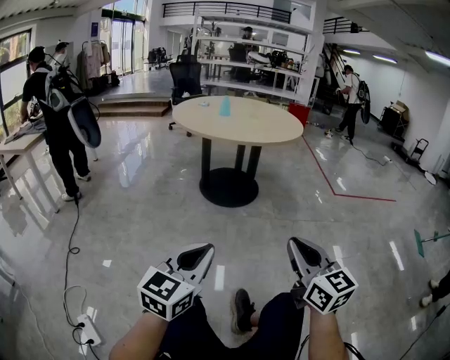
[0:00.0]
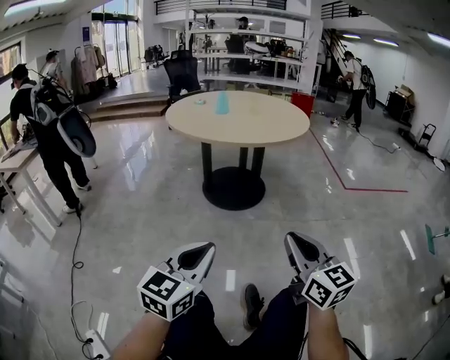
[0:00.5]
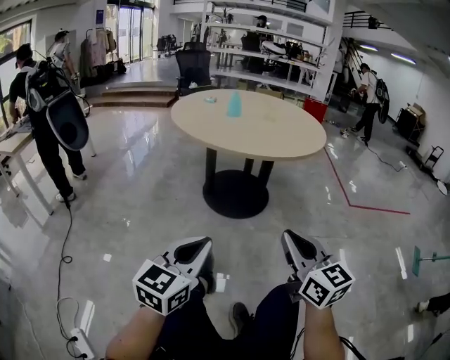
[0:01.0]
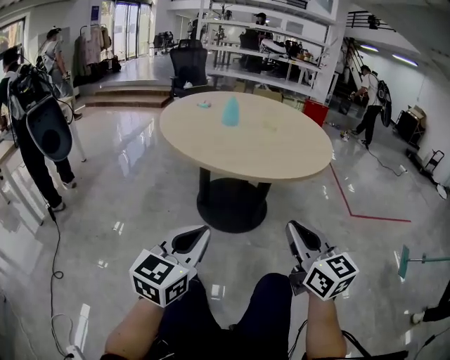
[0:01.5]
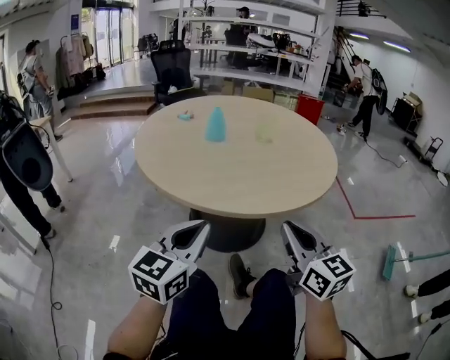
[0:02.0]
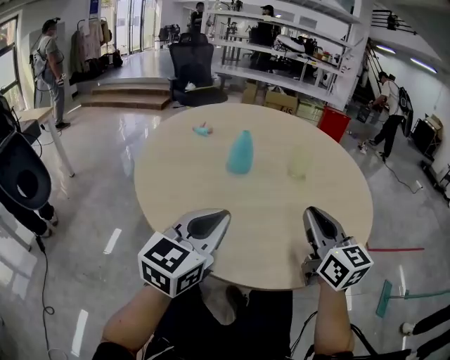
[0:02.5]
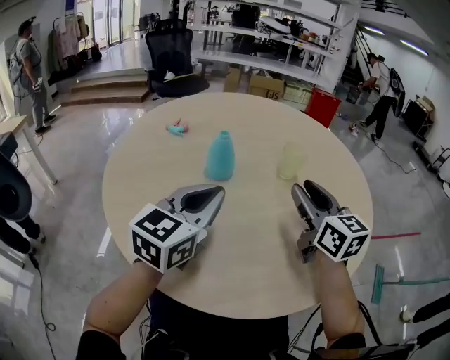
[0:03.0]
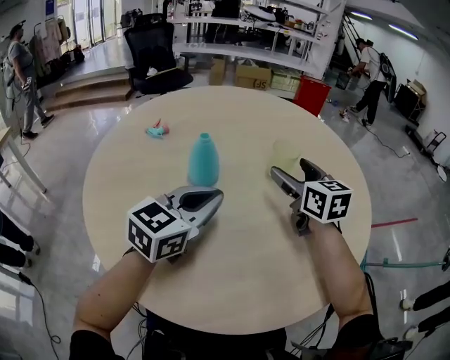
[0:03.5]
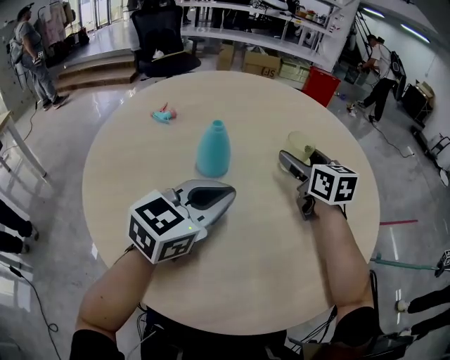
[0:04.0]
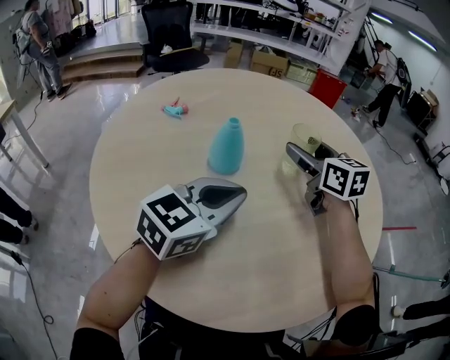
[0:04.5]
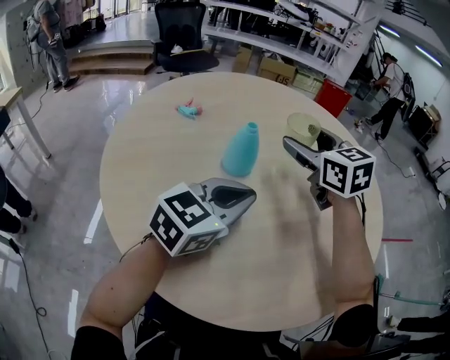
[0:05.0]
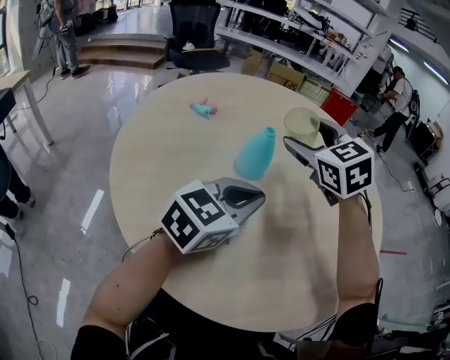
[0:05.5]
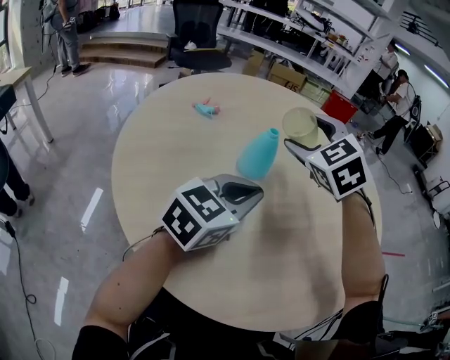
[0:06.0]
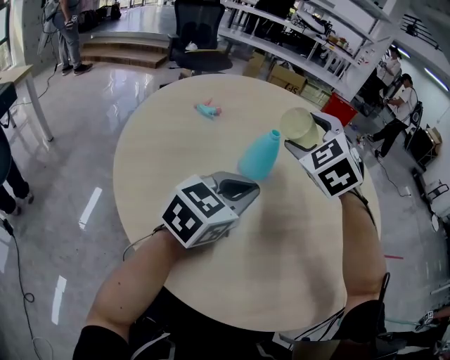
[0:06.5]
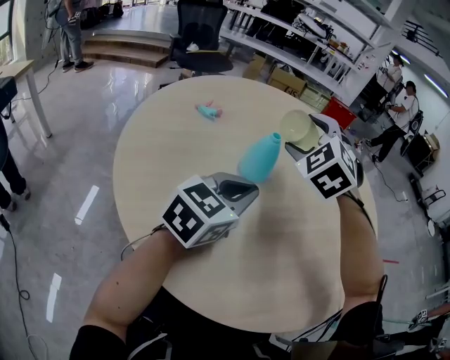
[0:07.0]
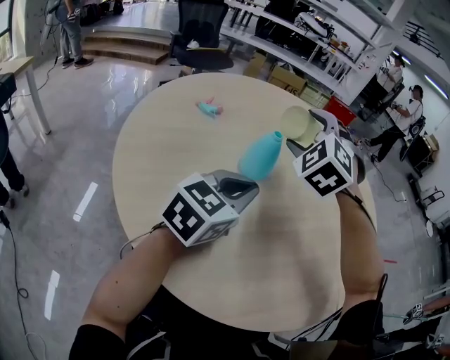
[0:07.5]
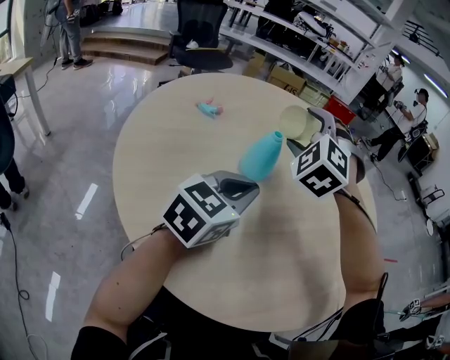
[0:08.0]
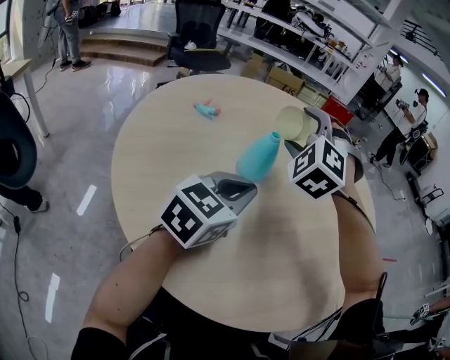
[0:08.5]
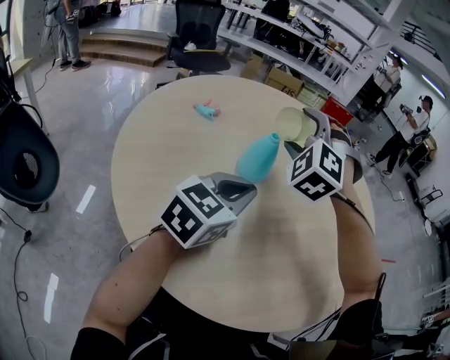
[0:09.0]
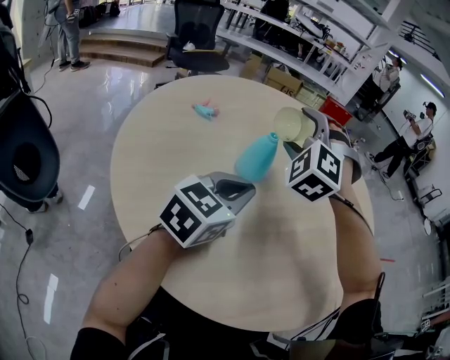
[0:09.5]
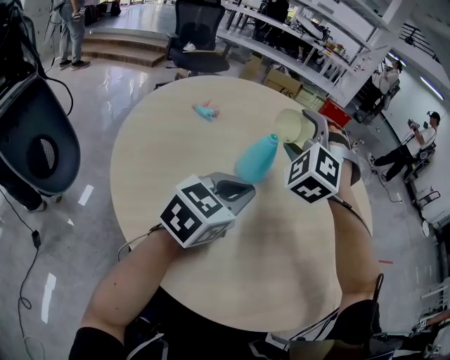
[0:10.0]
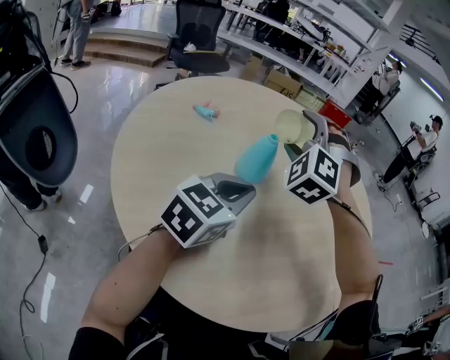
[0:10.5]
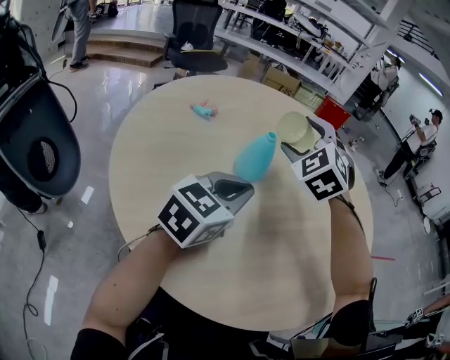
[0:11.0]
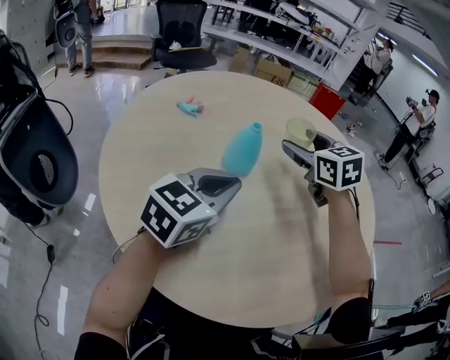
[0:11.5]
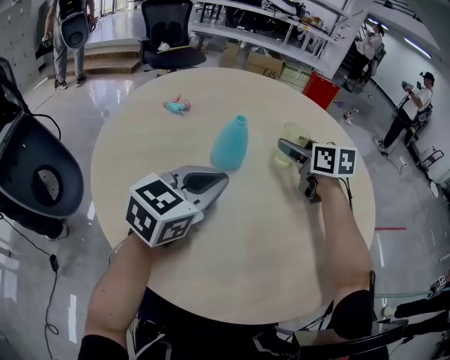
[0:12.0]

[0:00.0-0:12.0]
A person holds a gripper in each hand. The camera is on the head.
0:00.0 to 0:02.0: Both grippers are carried forward, about 50 cm.
0:02.0 to 0:04.0: Both grippers travel together forward, roughly 40 cm. The left gripper turns by approximately 20 degrees. The right gripper opens up.
0:04.0 to 0:06.0: The right gripper is displaced to the left and upward by approximately 20 cm, and twists some 50 degrees counterclockwise, seen from behind.
0:06.0 to 0:08.0: The right gripper rotates approximately 30 degrees.
0:08.0 to 0:10.0: There are only small adjustments of the grippers.
0:10.0 to 0:12.0: The right gripper goes approximately 15 cm to the right, downward and forward, and rolls clockwise, seen from behind, by about 80 degrees.

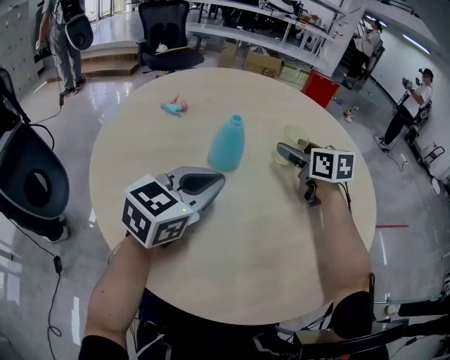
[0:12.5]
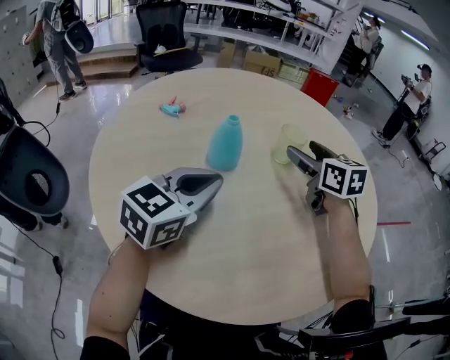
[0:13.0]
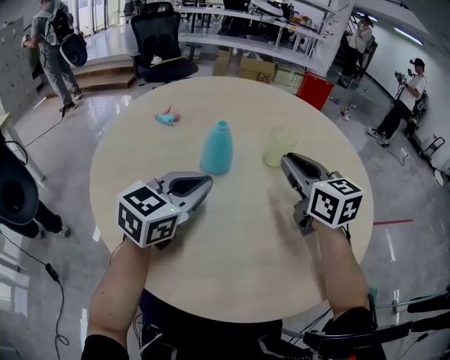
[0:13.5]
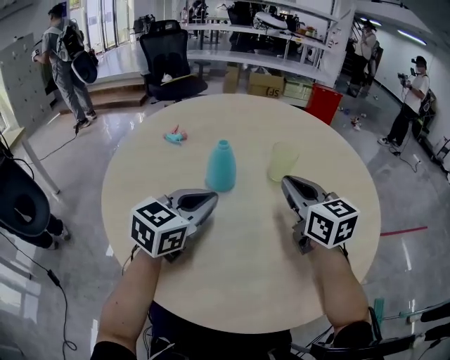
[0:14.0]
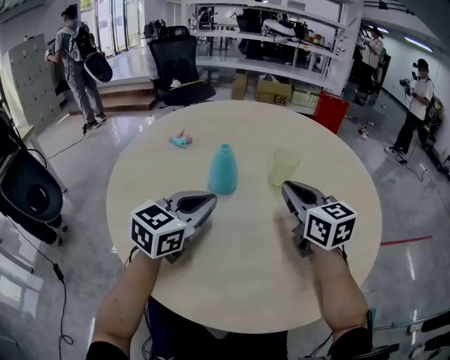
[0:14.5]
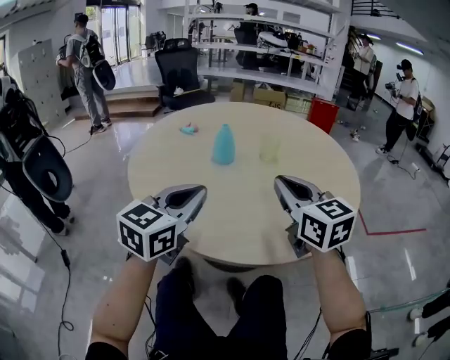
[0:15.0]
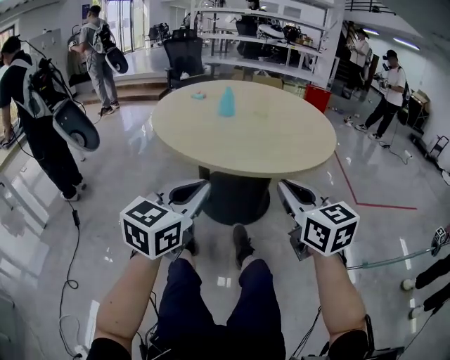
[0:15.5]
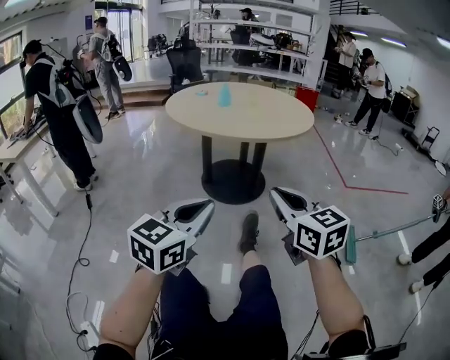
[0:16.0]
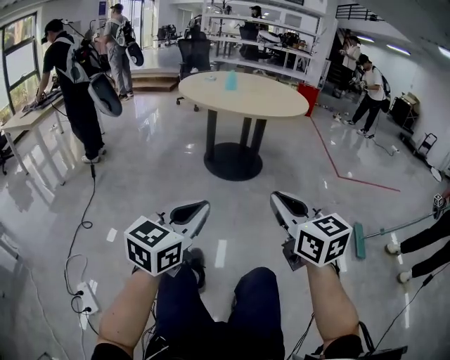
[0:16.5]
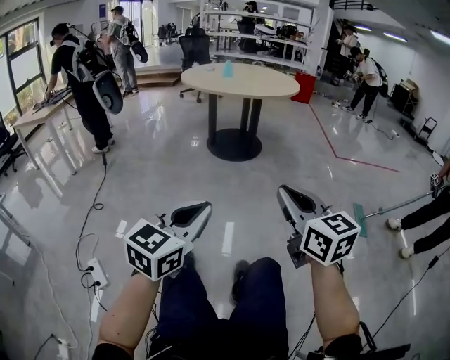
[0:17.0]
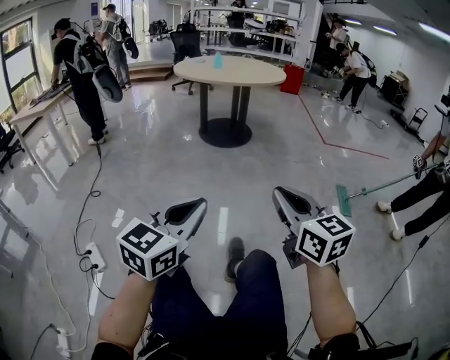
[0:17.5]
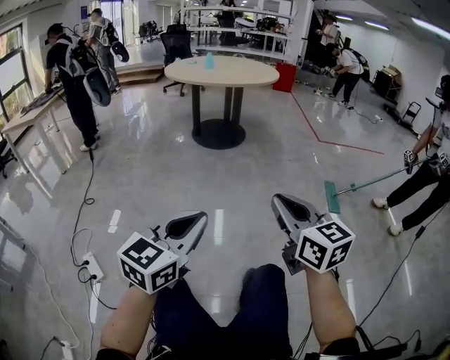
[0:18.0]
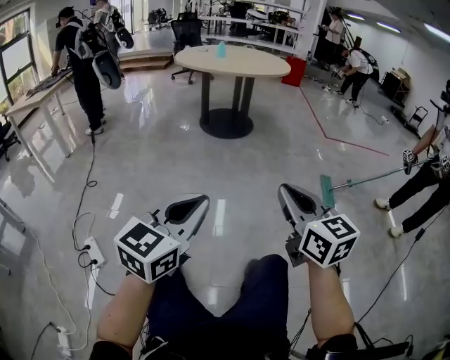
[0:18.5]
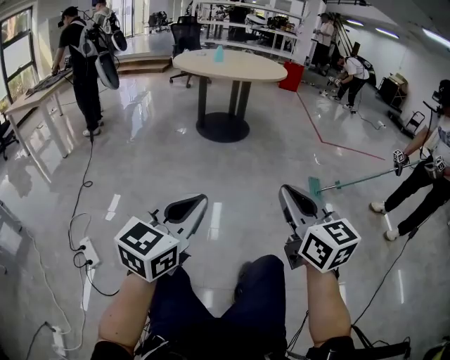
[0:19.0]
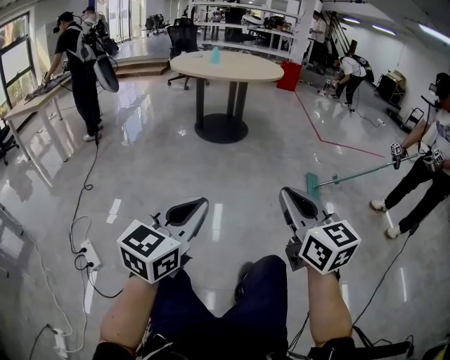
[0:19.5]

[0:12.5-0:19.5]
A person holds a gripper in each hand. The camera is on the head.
0:12.5 to 0:14.5: The right gripper heads backward, covering roughly 10 cm, and closes up.
0:14.5 to 0:16.0: The pair of grippers is taken backward, about 70 cm.
0:16.0 to 0:17.5: The pair of grippers is taken backward, roughly 50 cm.
0:17.5 to 0:19.5: The grippers move only a little.

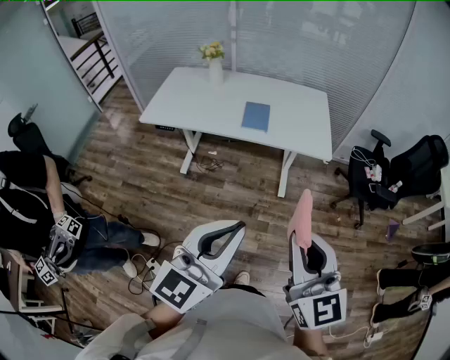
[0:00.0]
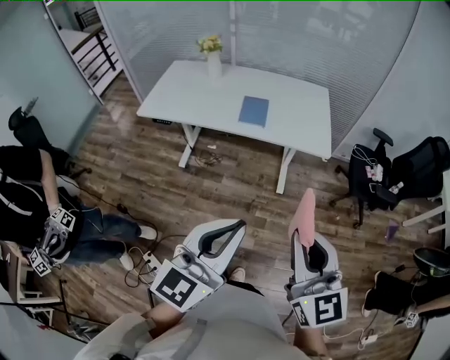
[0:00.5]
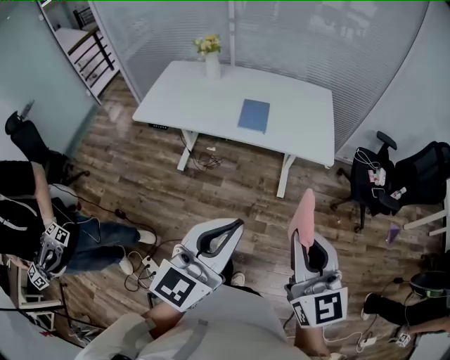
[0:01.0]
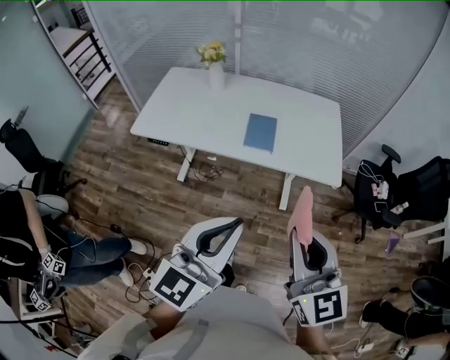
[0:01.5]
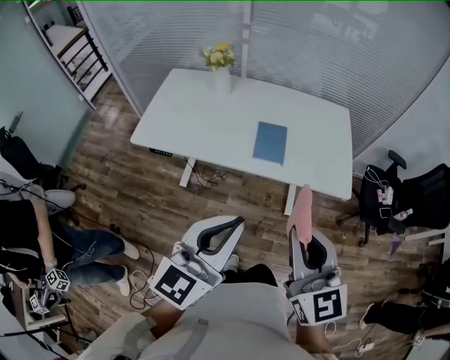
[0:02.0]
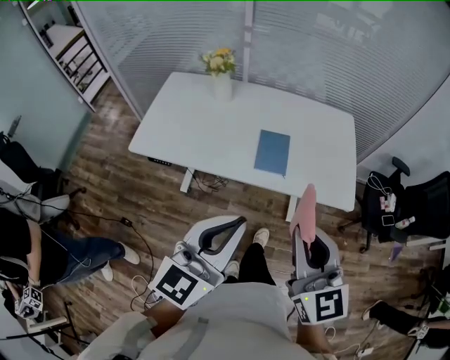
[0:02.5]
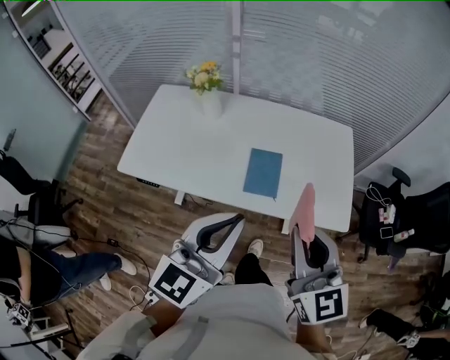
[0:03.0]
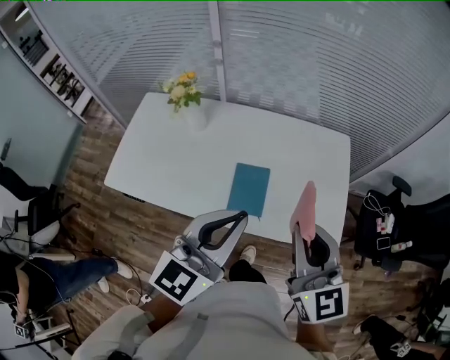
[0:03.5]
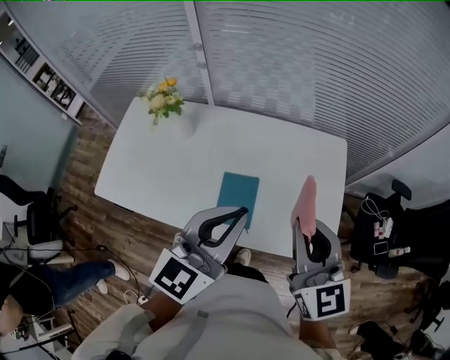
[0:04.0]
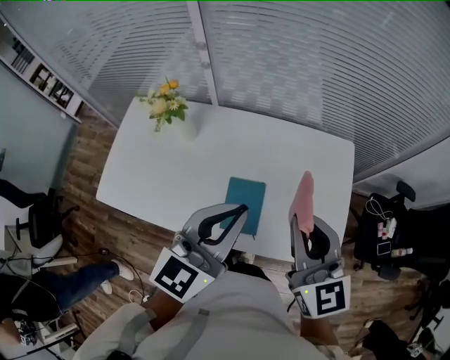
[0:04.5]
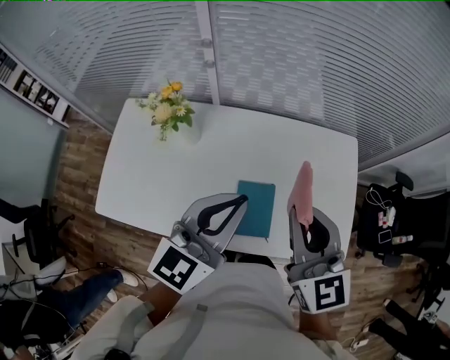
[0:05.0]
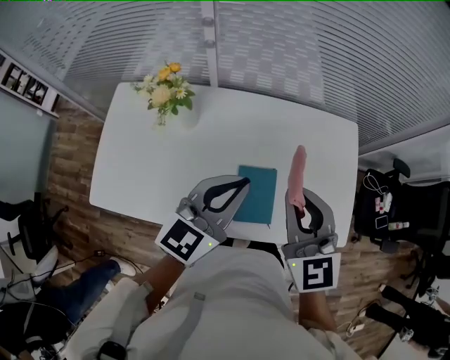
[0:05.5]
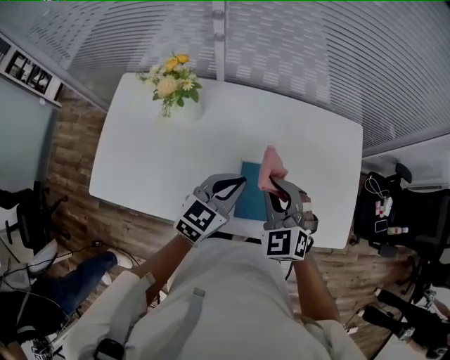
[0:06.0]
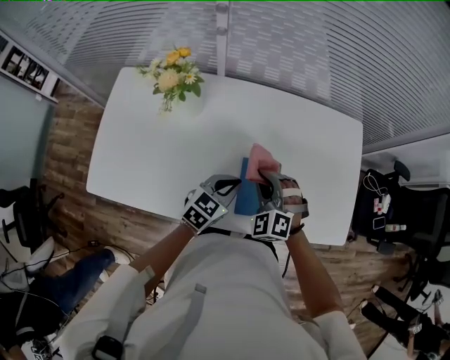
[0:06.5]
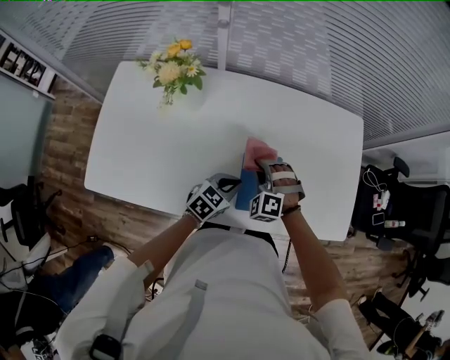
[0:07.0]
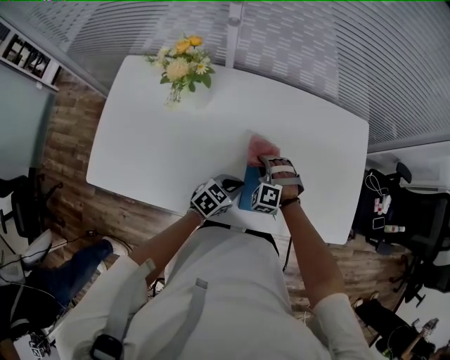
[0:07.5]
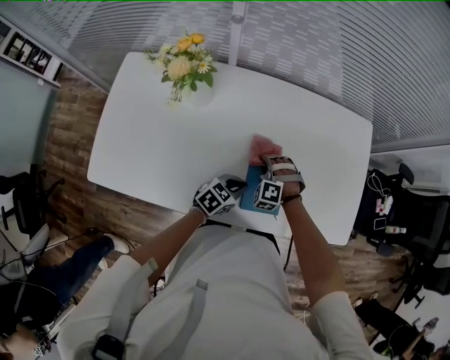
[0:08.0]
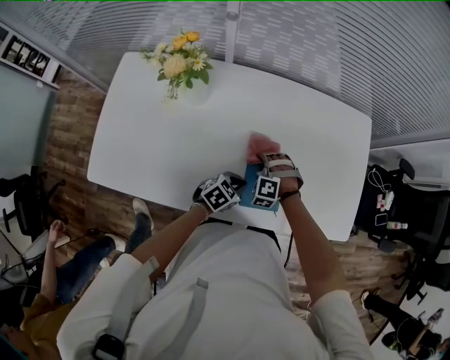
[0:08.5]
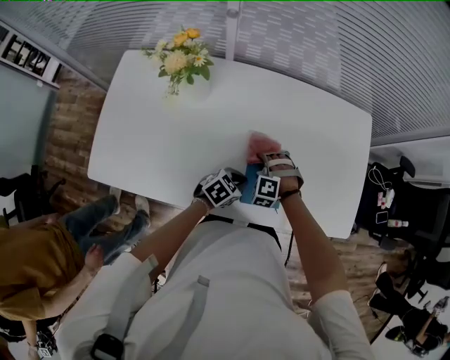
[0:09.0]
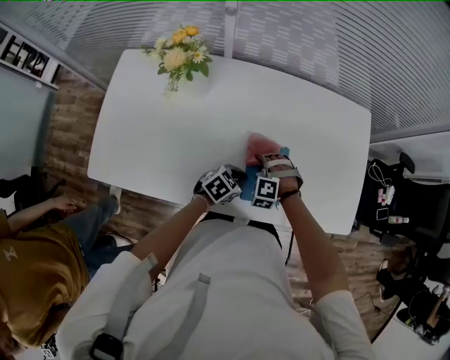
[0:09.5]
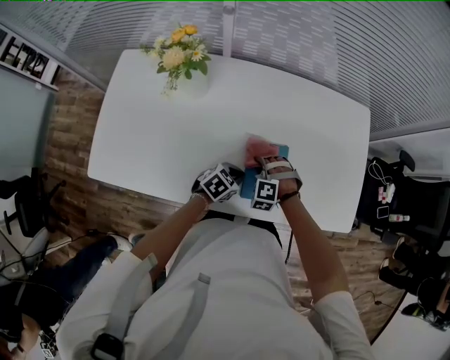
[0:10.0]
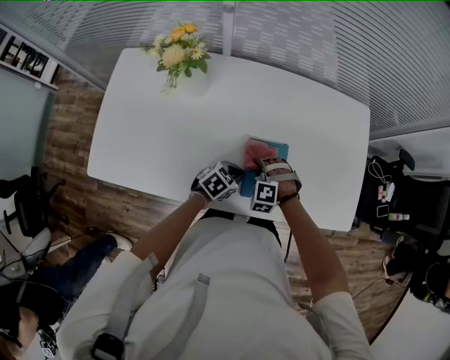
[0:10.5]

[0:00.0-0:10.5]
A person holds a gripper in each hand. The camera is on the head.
0:00.0 to 0:02.0: The grippers both shift forward and to the left by some 30 cm.
0:02.0 to 0:04.0: Both grippers are carried forward, approximately 40 cm.
0:04.0 to 0:06.5: The right gripper moves downward and to the left, roughly 35 cm, and twists approximately 50 degrees counterclockwise, seen from behind; the left gripper goes approximately 35 cm downward, and turns by approximately 30 degrees.
0:06.5 to 0:08.5: Both grippers travel together downward, approximately 15 cm. The left gripper turns by roughly 20 degrees, while the right gripper rotates about 30 degrees.
0:08.5 to 0:10.5: The right gripper moves about 5 cm.
